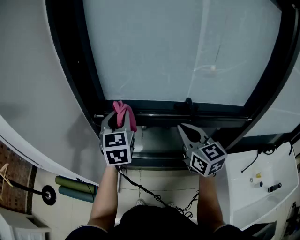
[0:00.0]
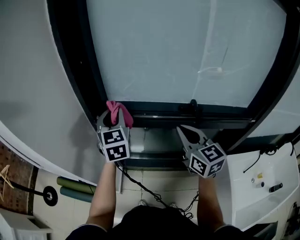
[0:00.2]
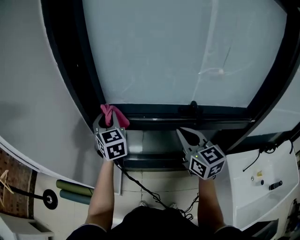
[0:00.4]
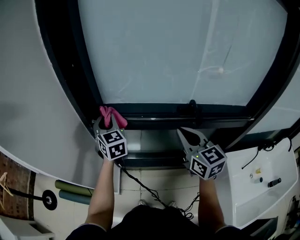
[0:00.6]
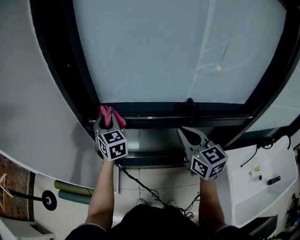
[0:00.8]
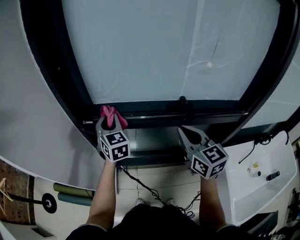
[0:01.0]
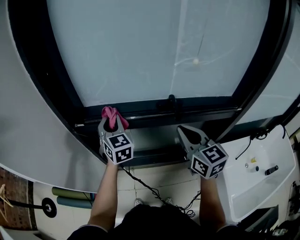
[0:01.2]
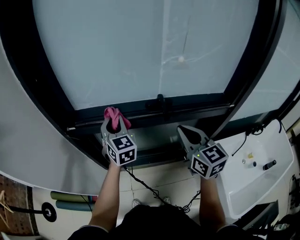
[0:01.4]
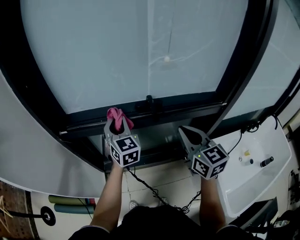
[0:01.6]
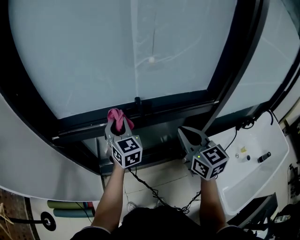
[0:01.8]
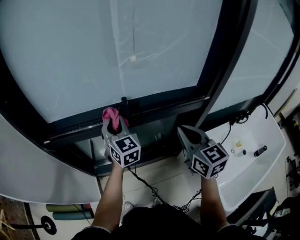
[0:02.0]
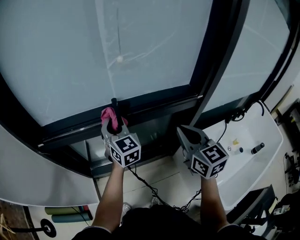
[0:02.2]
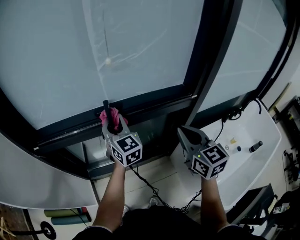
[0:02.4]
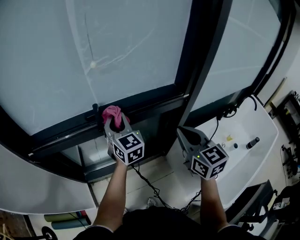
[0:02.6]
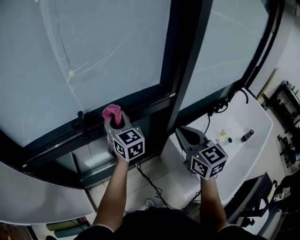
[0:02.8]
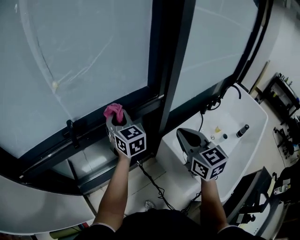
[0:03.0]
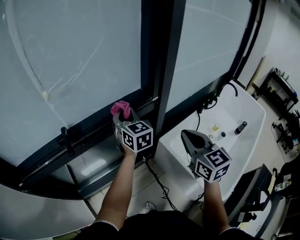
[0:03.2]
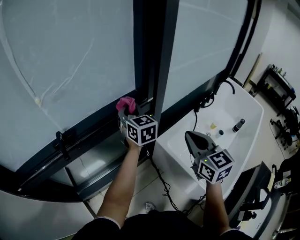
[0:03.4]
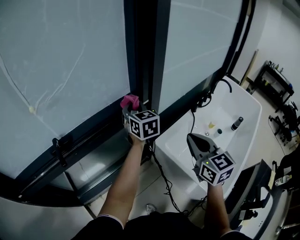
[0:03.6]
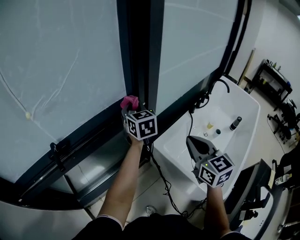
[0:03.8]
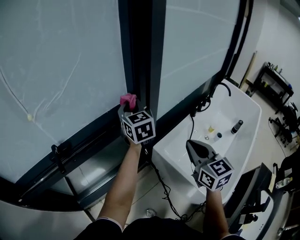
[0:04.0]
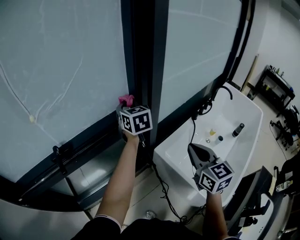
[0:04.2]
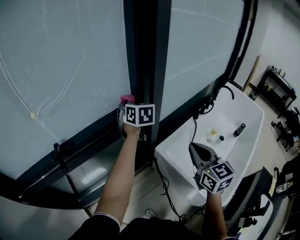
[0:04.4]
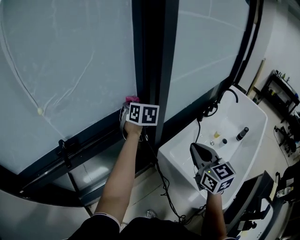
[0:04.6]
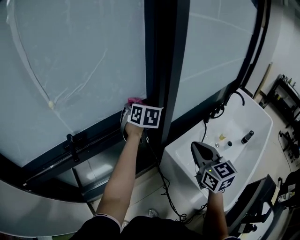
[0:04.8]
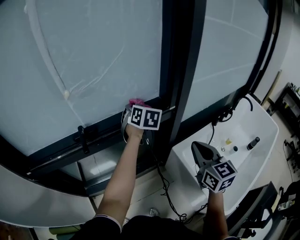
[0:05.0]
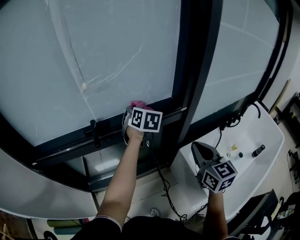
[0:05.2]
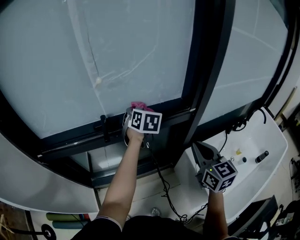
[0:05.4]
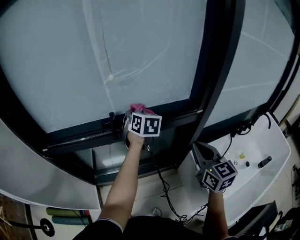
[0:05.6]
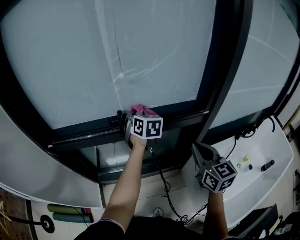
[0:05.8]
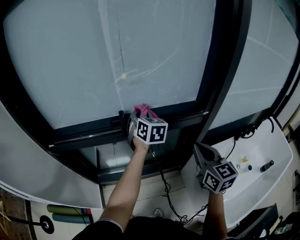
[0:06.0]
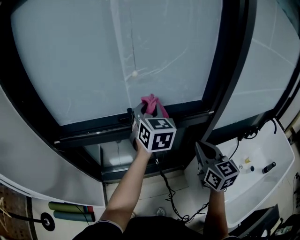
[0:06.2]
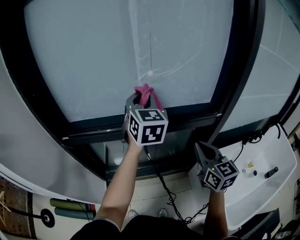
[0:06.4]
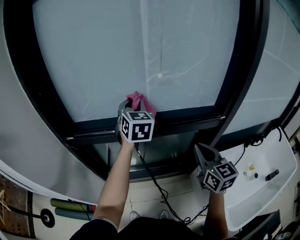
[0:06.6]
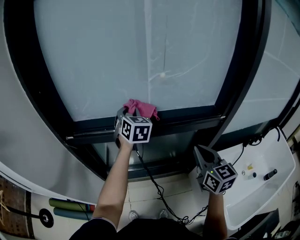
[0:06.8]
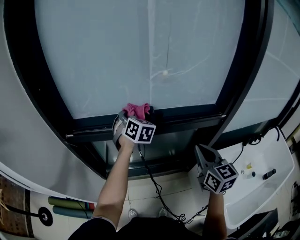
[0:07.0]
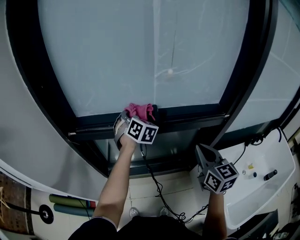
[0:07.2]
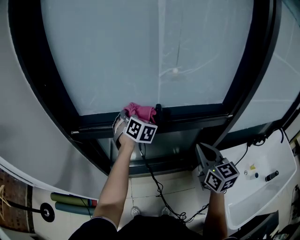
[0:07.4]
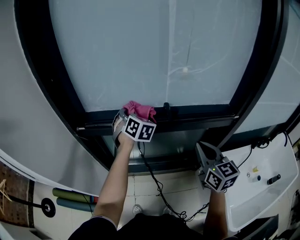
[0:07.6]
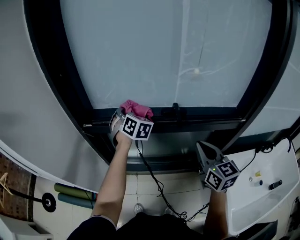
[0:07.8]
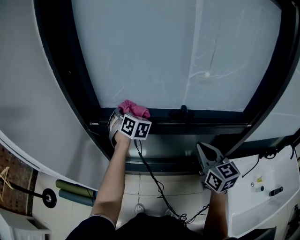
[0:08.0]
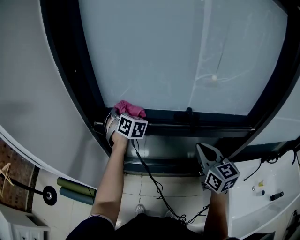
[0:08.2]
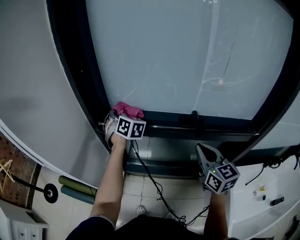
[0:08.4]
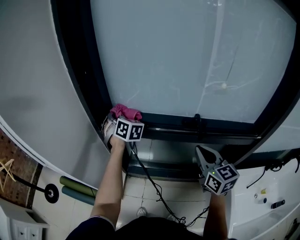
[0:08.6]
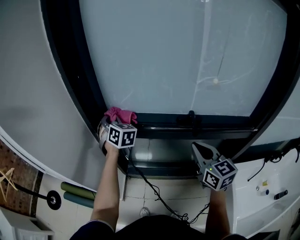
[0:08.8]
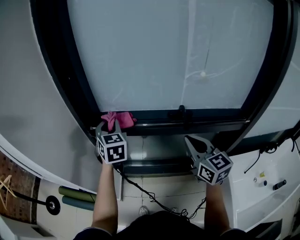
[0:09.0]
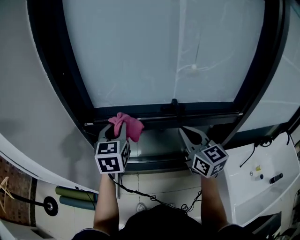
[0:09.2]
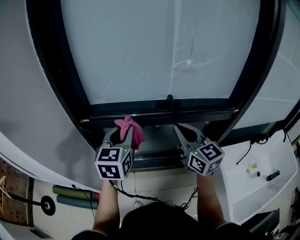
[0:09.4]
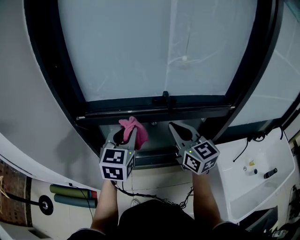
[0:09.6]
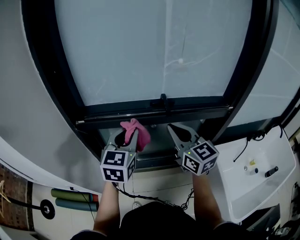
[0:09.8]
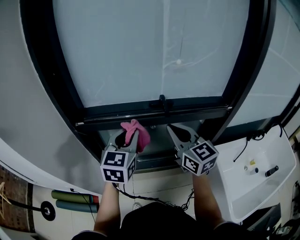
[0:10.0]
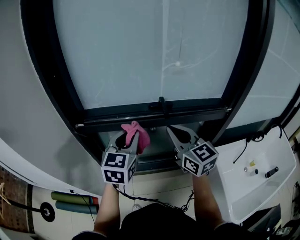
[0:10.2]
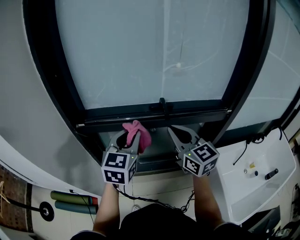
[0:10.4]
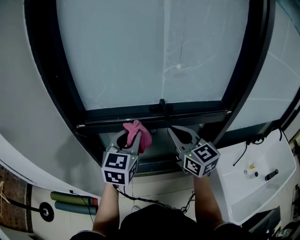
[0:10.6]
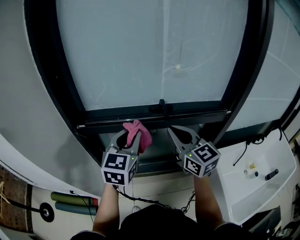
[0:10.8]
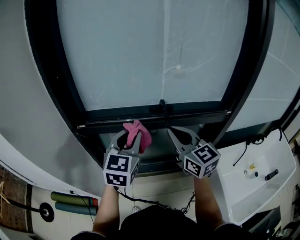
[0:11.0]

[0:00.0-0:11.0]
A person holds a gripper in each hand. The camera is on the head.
0:00.0 to 0:01.6: The left gripper goes roughly 15 cm to the right and downward. The right gripper travels to the right and backward by some 15 cm.
0:01.6 to 0:03.2: The grippers both shift to the right by about 35 cm. The right gripper changes its angle by roughly 30 degrees. The left gripper rotates approximately 20 degrees.
0:03.2 to 0:04.8: The left gripper goes some 5 cm forward, and rotates about 20 degrees.
0:04.8 to 0:06.2: The right gripper shifts approximately 15 cm to the left, and changes its angle by approximately 20 degrees, while the left gripper shifts approximately 25 cm to the left and upward, and turns by about 30 degrees.
0:06.2 to 0:07.8: The right gripper travels to the left by about 15 cm; the left gripper goes some 30 cm to the left, and turns by some 30 degrees.
0:07.8 to 0:09.4: The right gripper ends up about 10 cm from where it was. The left gripper changes place by about 15 cm, and rotates some 50 degrees.
0:09.4 to 0:11.0: The left gripper is displaced to the right by roughly 5 cm.

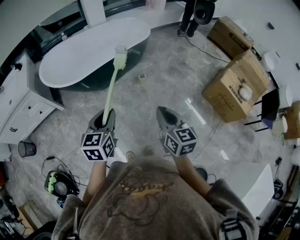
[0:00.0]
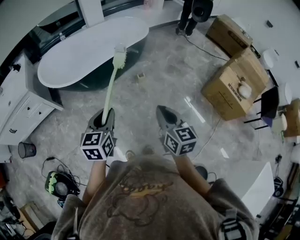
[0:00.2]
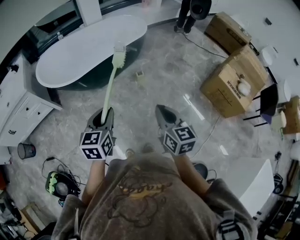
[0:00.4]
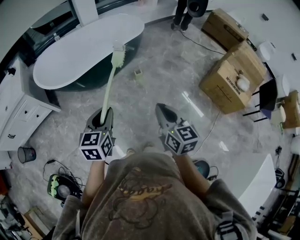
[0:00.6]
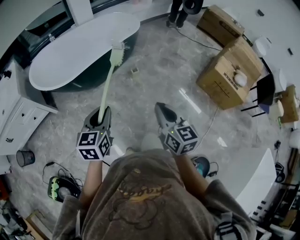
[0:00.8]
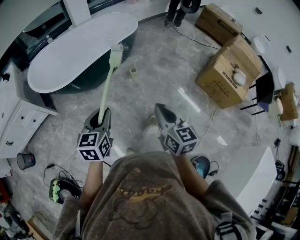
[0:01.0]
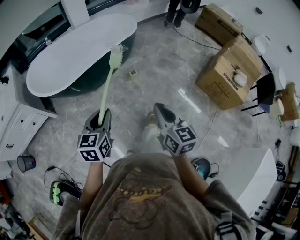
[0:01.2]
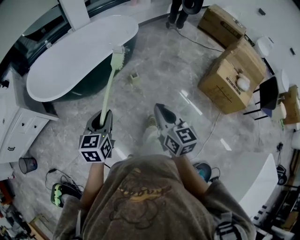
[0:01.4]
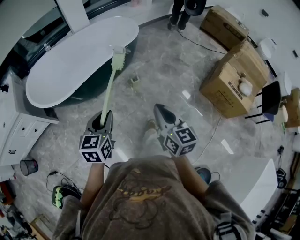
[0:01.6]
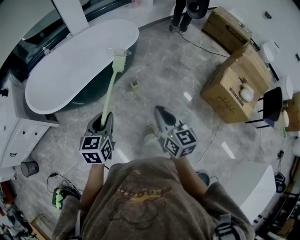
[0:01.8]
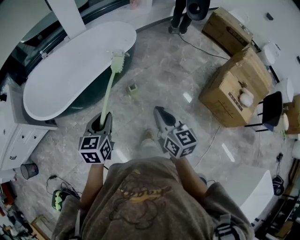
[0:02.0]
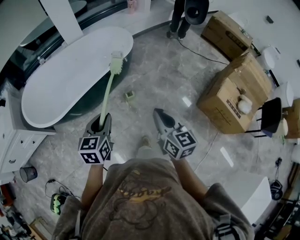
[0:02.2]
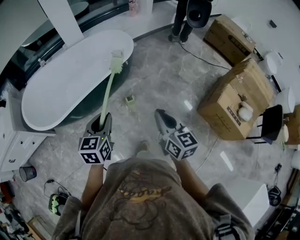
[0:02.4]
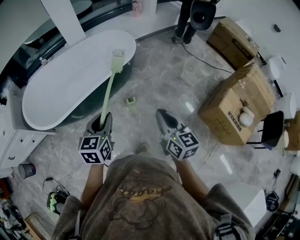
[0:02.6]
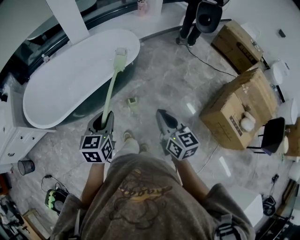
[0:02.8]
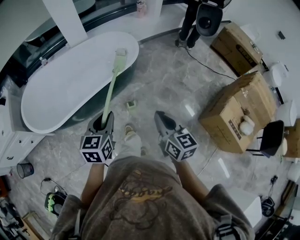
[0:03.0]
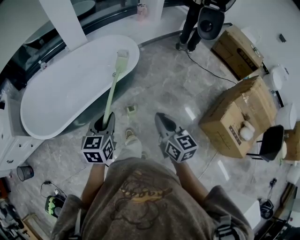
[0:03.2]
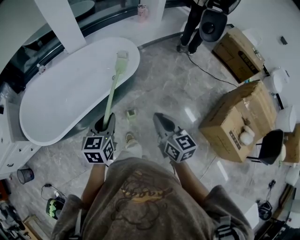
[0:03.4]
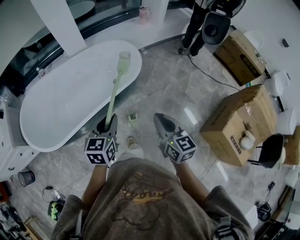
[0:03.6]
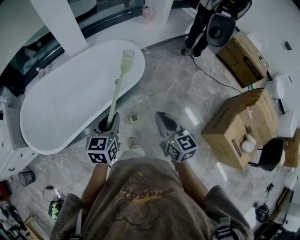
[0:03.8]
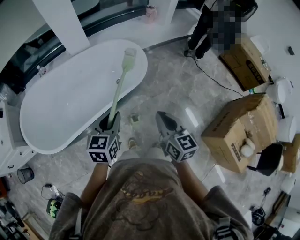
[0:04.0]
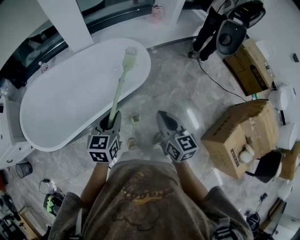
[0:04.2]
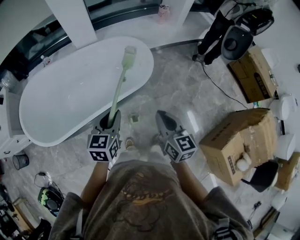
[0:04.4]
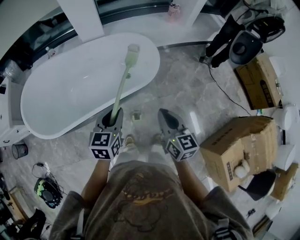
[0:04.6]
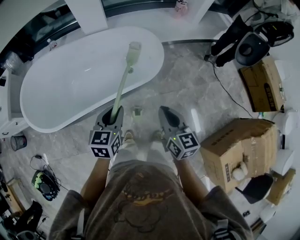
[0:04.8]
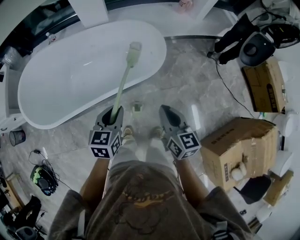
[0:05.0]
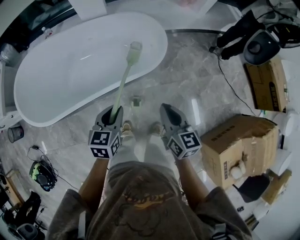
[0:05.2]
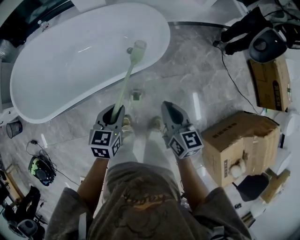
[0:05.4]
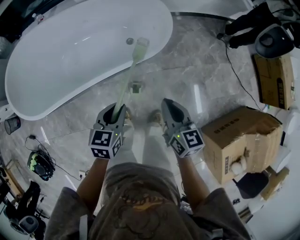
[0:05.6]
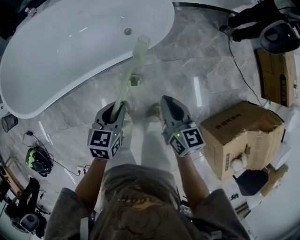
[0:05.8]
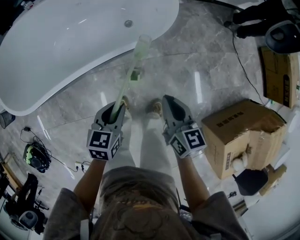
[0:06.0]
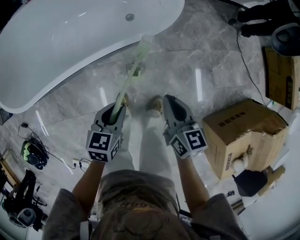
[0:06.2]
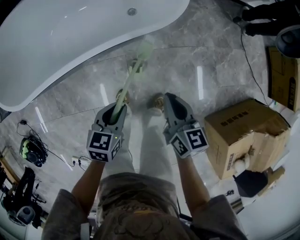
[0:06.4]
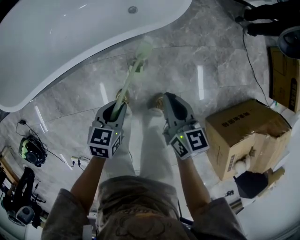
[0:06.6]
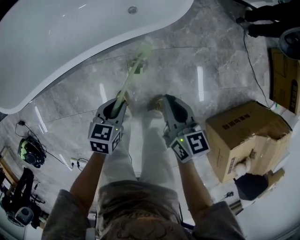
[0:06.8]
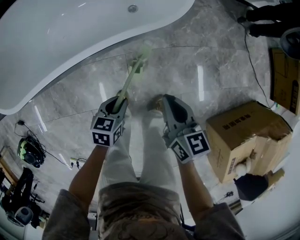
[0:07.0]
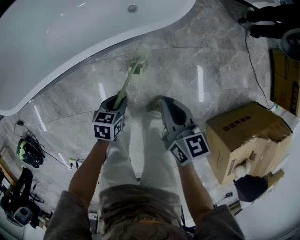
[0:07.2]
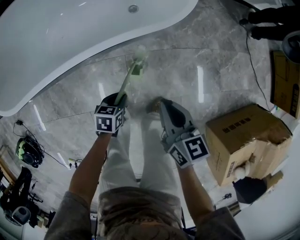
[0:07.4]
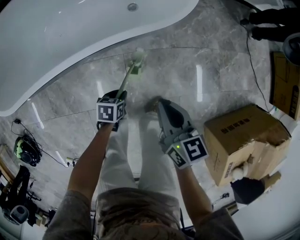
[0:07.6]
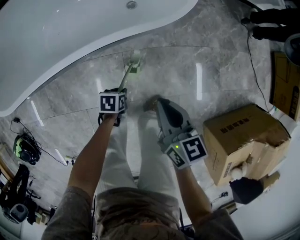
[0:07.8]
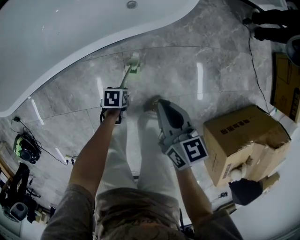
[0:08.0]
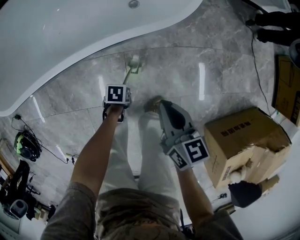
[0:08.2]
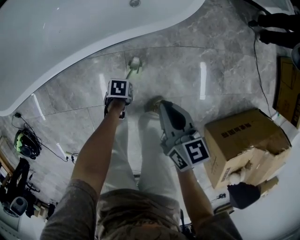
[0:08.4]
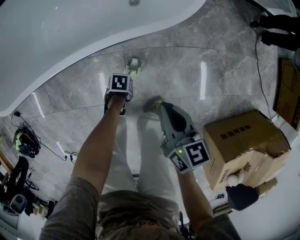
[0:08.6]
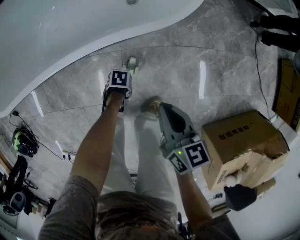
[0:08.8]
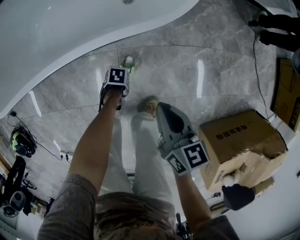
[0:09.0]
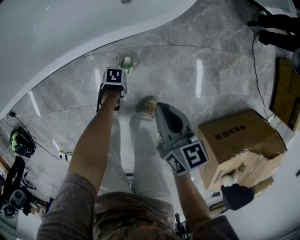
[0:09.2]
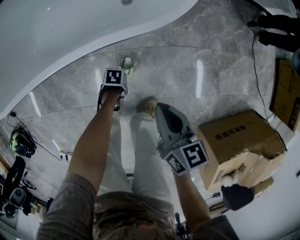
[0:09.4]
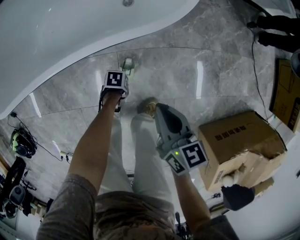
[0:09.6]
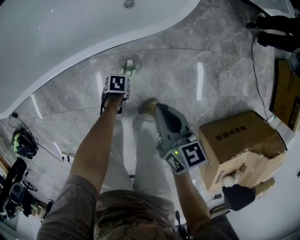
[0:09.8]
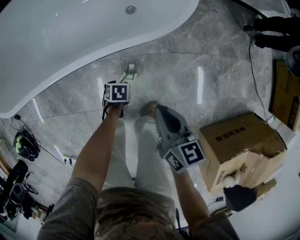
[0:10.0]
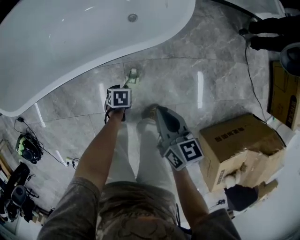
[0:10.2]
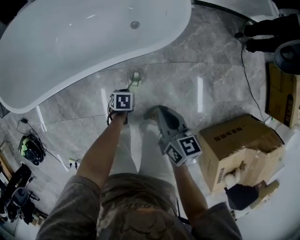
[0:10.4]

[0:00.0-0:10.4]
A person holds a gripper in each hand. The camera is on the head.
0:00.0 to 0:01.4: Both grippers move forward, roughly 5 cm.
0:01.4 to 0:03.0: Both grippers travel together forward and to the right, approximately 35 cm.
0:03.0 to 0:04.4: The grippers both shift forward by roughly 25 cm.
0:04.4 to 0:06.0: Both grippers travel together downward, roughly 20 cm.
0:06.0 to 0:07.4: The right gripper goes roughly 10 cm downward. Meanwhile the left gripper heads downward, covering some 25 cm.
0:07.4 to 0:09.0: The left gripper goes roughly 15 cm downward, and rotates some 40 degrees; the right gripper moves about 10 cm.
0:09.0 to 0:10.4: The left gripper goes about 15 cm upward, rotates some 30 degrees, and opens and closes again, while the right gripper travels upward by some 10 cm.

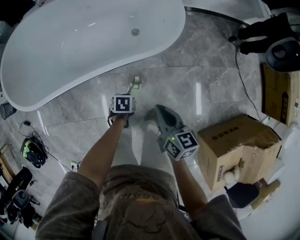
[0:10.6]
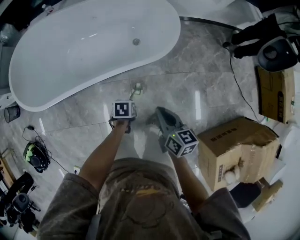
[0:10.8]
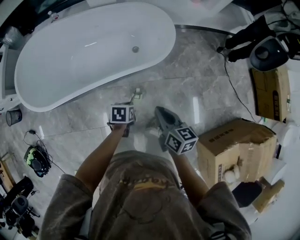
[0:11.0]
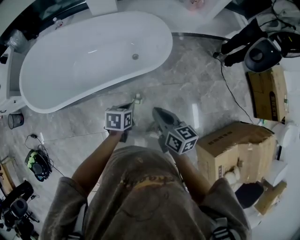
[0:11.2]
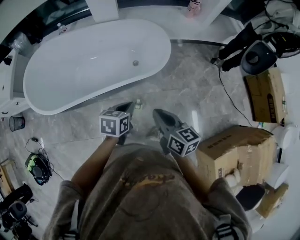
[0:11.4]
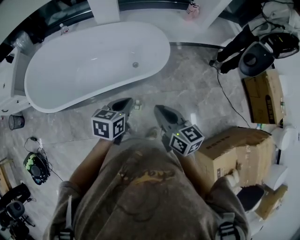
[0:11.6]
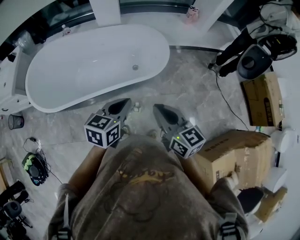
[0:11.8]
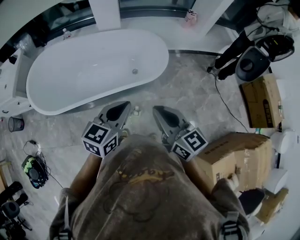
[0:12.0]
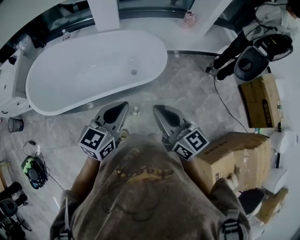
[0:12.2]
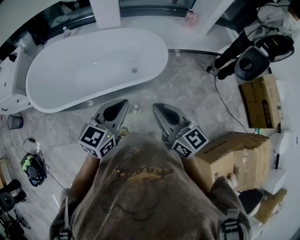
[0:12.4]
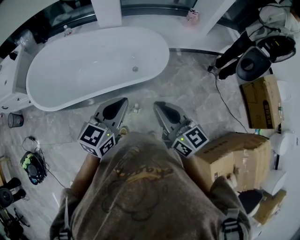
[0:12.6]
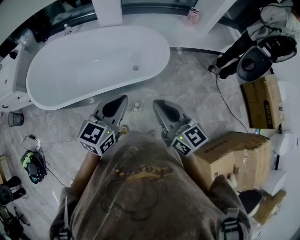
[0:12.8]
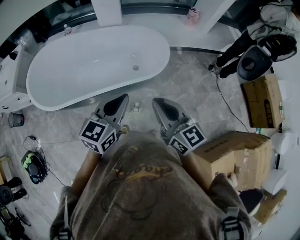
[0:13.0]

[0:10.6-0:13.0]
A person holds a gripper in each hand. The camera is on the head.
0:10.6 to 0:11.8: The left gripper shifts roughly 50 cm upward, and angles its fingers upward, by approximately 40 degrees, while the right gripper is displaced upward by some 25 cm, and changes its angle by about 20 degrees.
0:11.8 to 0:13.0: The left gripper travels upward by about 5 cm.
